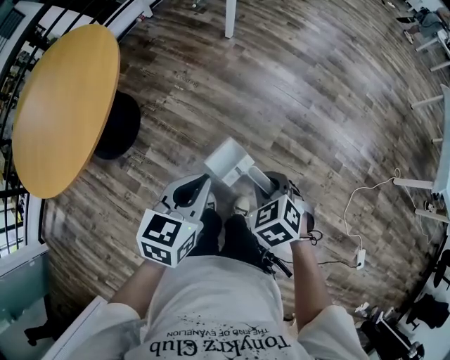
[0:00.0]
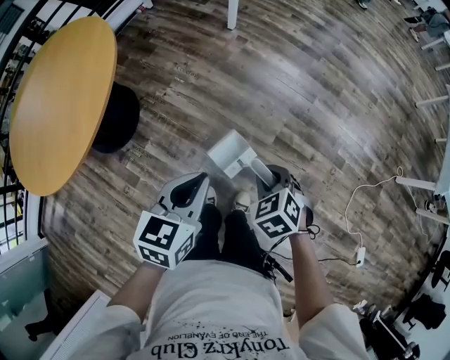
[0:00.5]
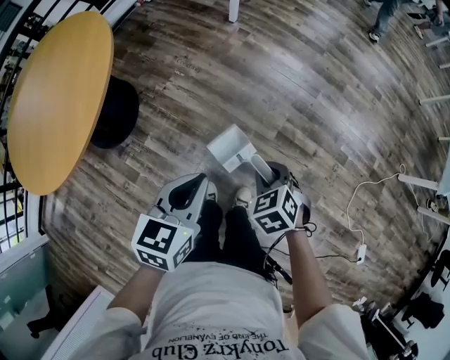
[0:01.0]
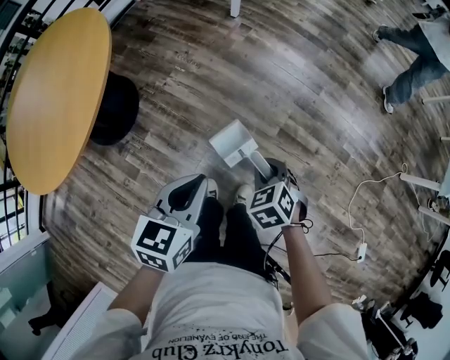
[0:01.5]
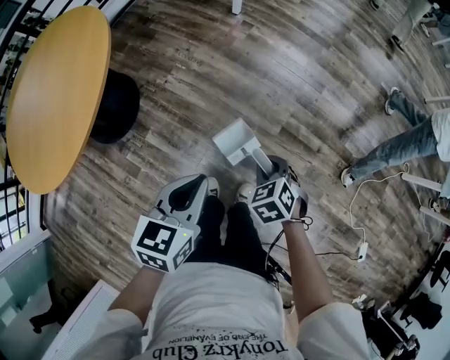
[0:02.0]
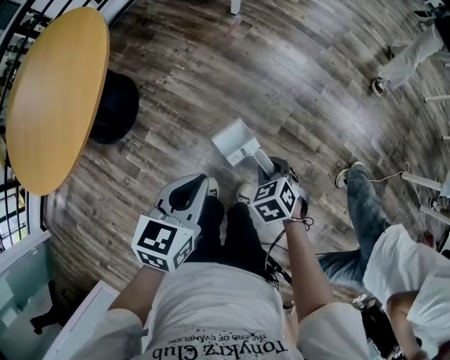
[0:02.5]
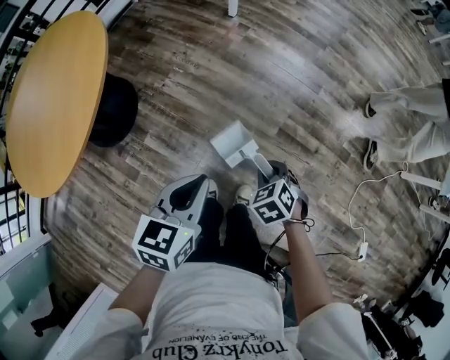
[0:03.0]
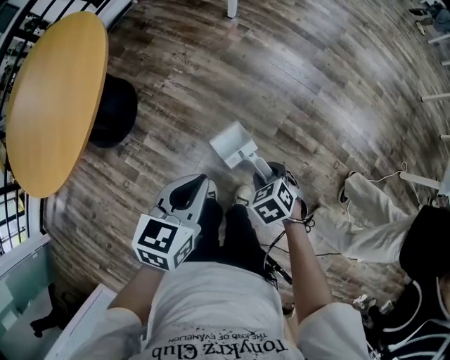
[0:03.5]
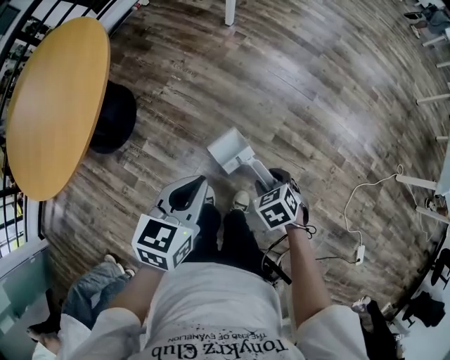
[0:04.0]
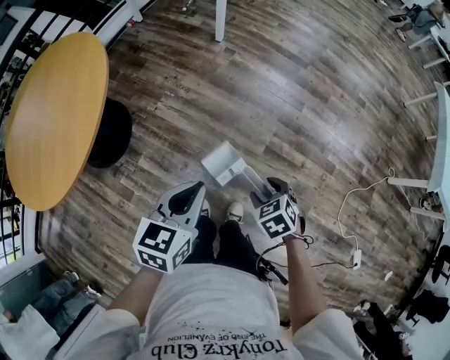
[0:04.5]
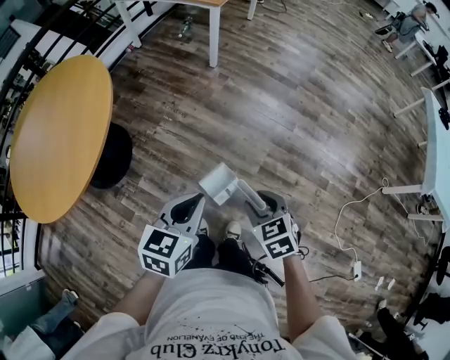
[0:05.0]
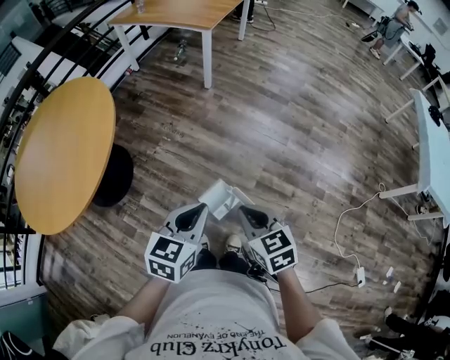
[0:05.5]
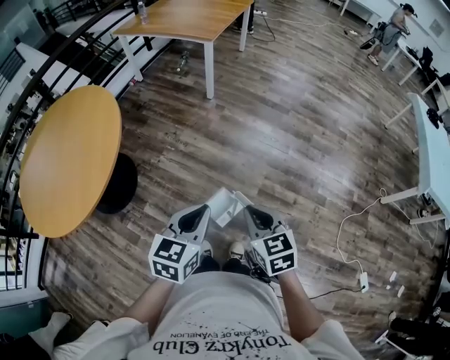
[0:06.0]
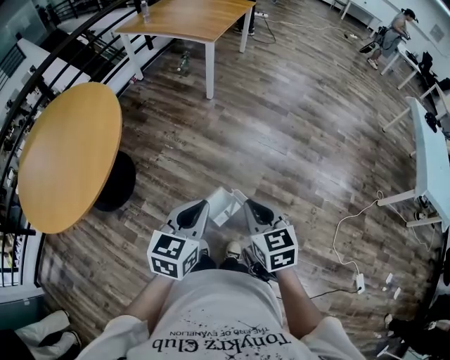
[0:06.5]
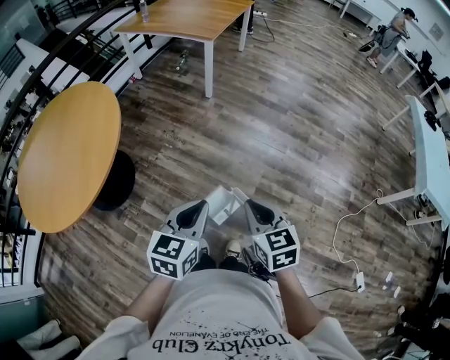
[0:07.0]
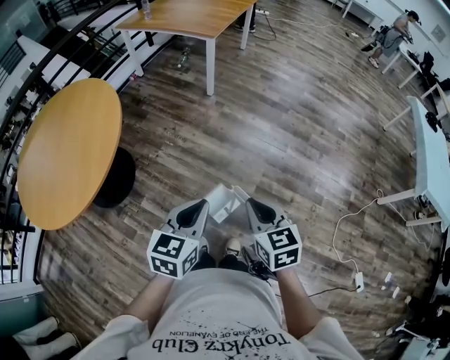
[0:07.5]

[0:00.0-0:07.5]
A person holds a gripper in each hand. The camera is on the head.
0:00.0 to 0:02.0: The left gripper heads downward, covering roughly 5 cm. The right gripper travels downward and forward by some 15 cm.
0:02.0 to 0:04.0: The right gripper shifts by about 5 cm, and opens its fingers.
0:04.0 to 0:05.5: The right gripper travels upward by roughly 20 cm, points its fingers roughly 30 degrees further upward, and closes its fingers. The left gripper is displaced upward by about 10 cm.
0:05.5 to 0:07.5: There are only small adjustments of the grippers.

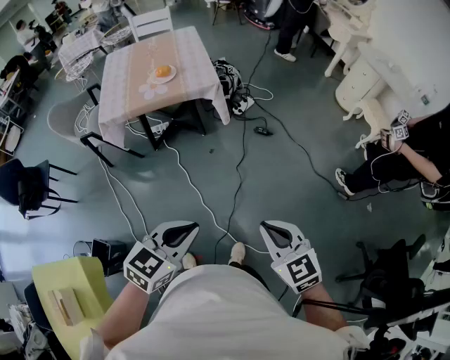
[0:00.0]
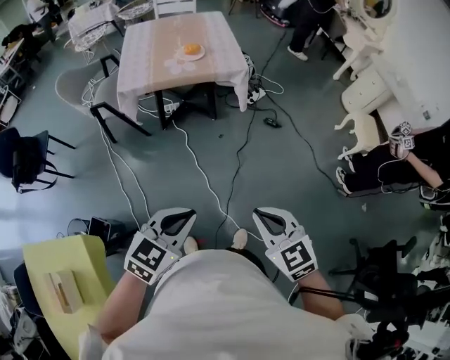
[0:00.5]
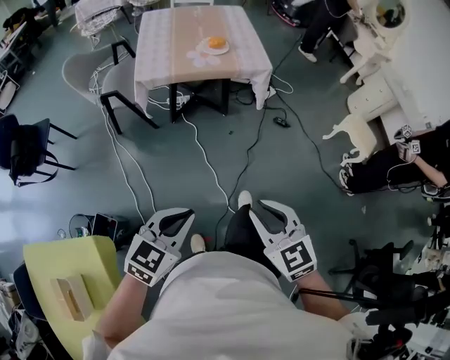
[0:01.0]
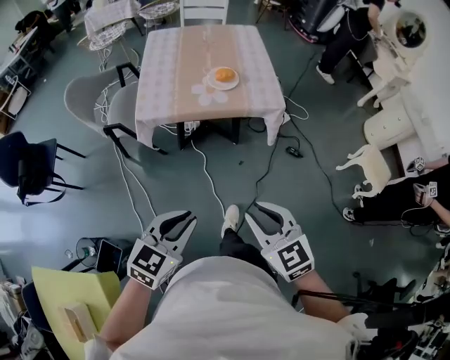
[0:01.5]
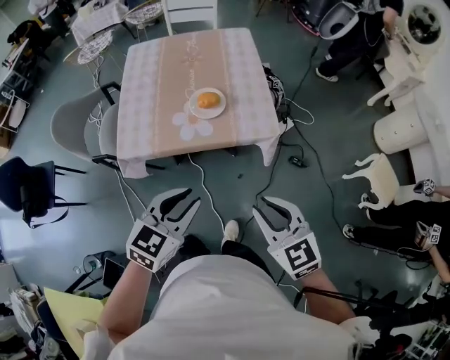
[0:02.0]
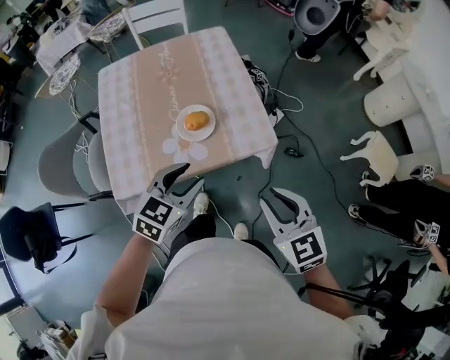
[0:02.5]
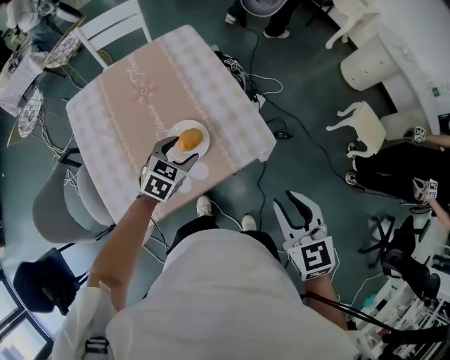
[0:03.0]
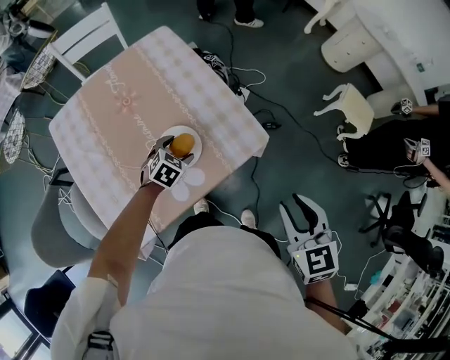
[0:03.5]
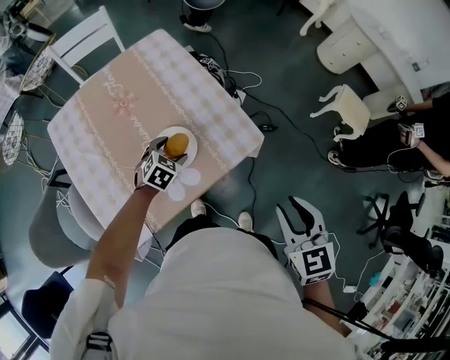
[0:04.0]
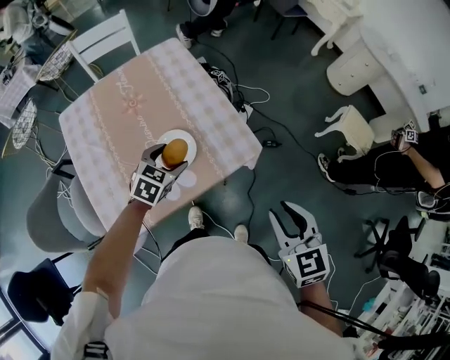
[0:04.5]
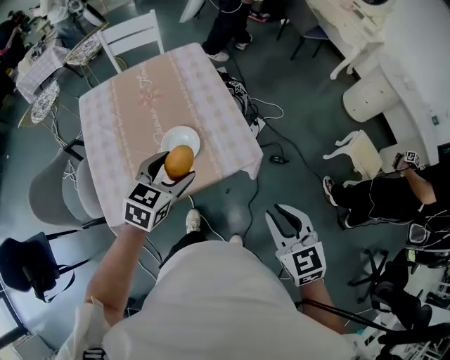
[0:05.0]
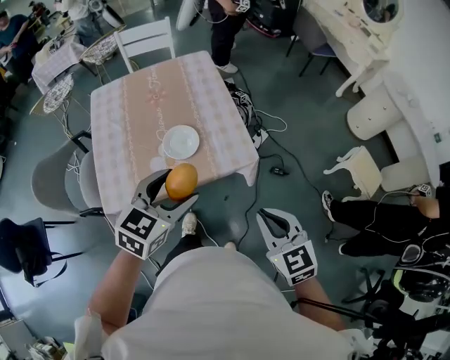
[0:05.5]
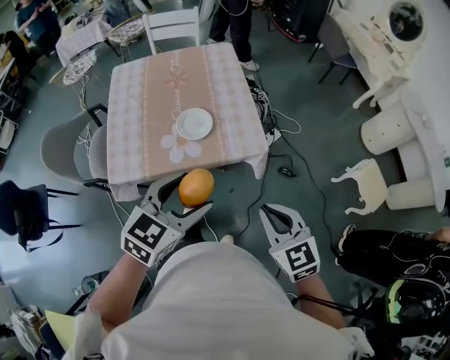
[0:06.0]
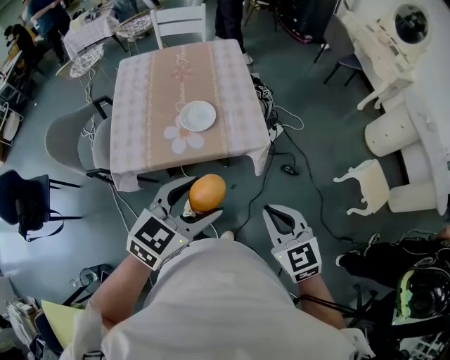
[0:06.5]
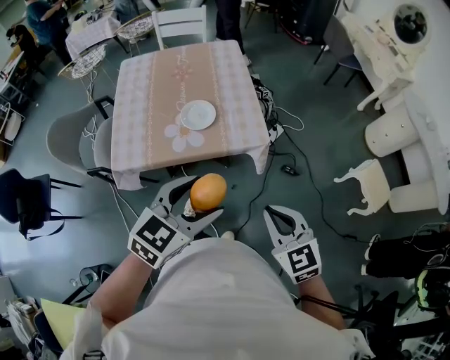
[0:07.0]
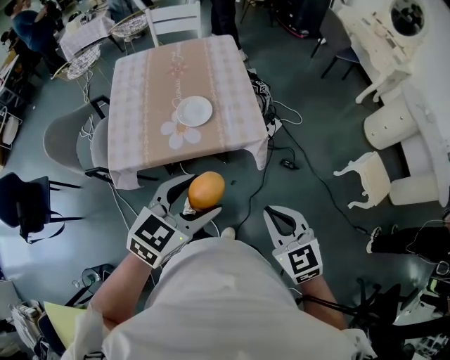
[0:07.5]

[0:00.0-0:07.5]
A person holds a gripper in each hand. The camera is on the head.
0:00.0 to 0:02.0: The pair of grippers is taken forward and to the left, roughly 50 cm.
0:02.0 to 0:04.0: The right gripper shifts by some 15 cm, and changes its angle by some 50 degrees. Meanwhile the left gripper shifts by approximately 40 cm, rotates approximately 40 degrees, and opens its fingers.
0:04.0 to 0:05.5: The right gripper changes place by some 5 cm, rotates roughly 30 degrees, and closes its fingers. Meanwhile the left gripper is displaced upward and backward by some 35 cm, and swivels roughly 30 degrees.
0:05.5 to 0:07.5: The left gripper shifts approximately 15 cm backward and to the right. The right gripper goes approximately 10 cm backward.

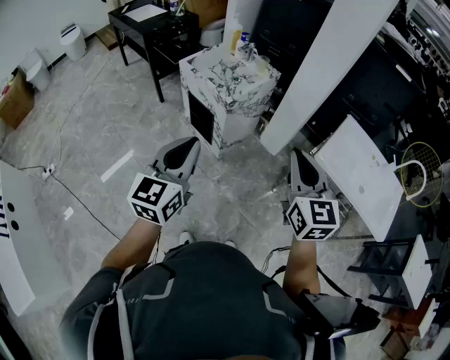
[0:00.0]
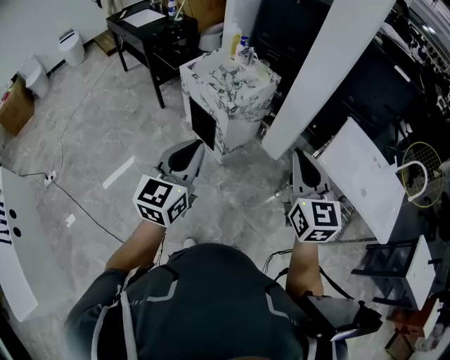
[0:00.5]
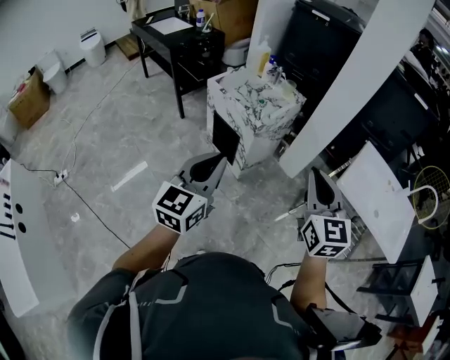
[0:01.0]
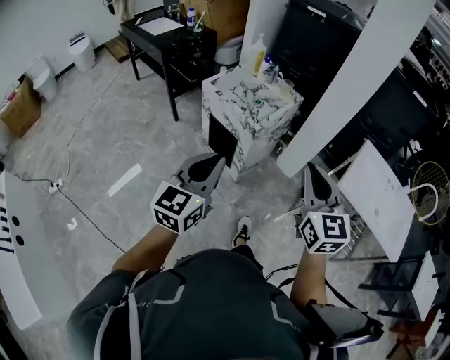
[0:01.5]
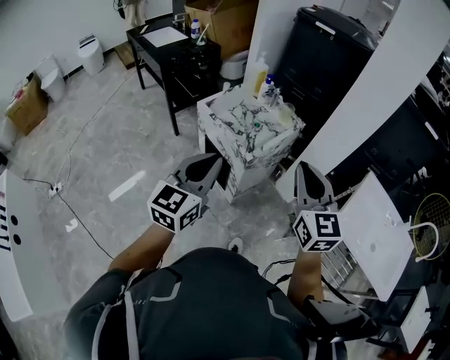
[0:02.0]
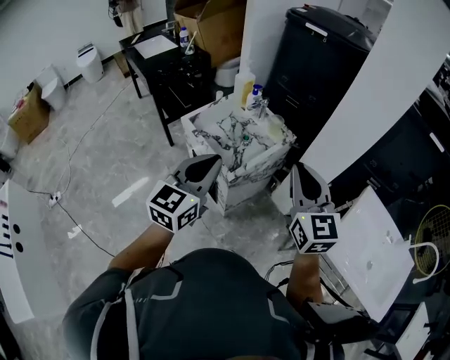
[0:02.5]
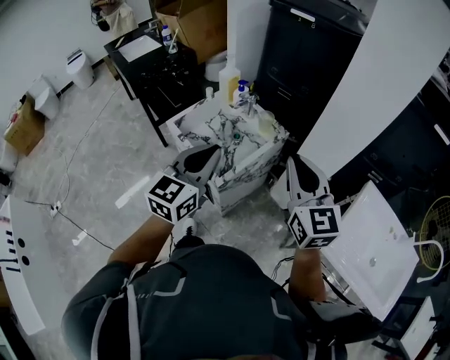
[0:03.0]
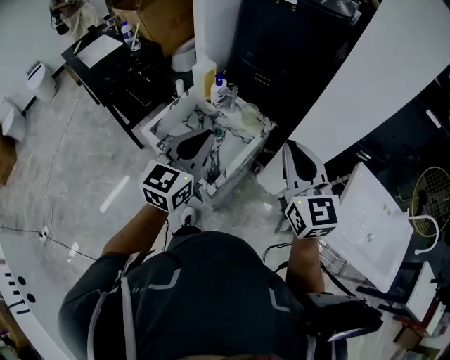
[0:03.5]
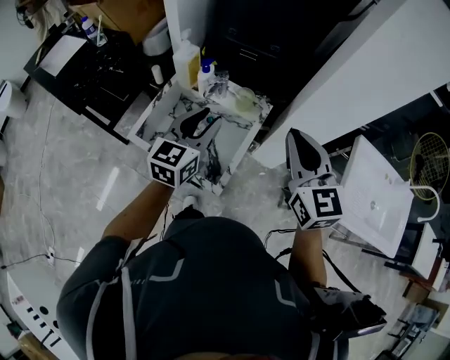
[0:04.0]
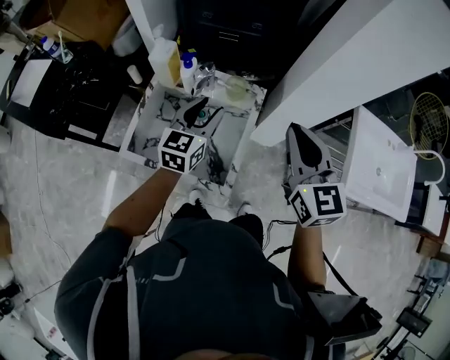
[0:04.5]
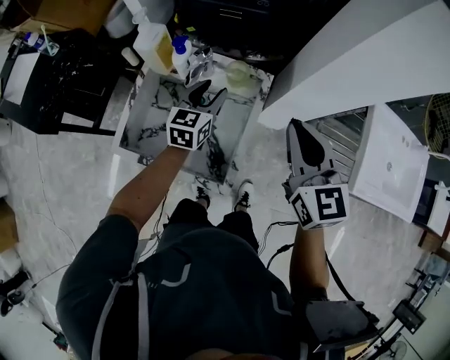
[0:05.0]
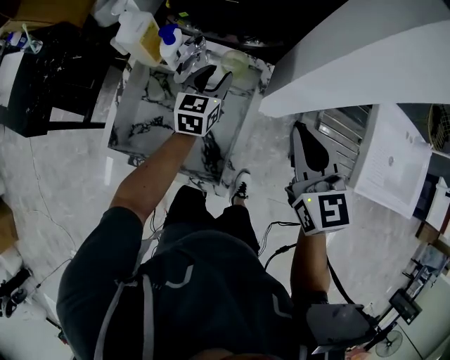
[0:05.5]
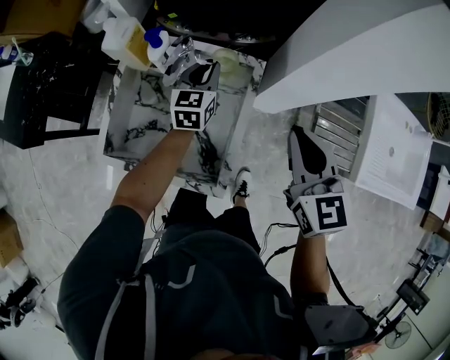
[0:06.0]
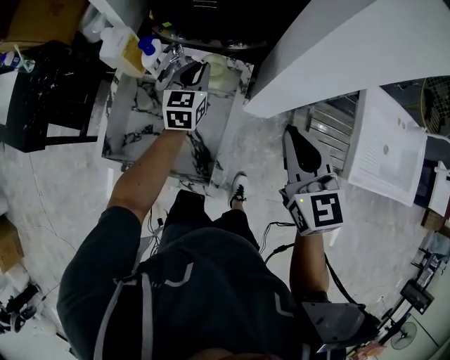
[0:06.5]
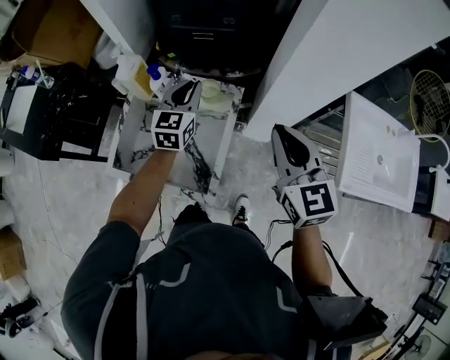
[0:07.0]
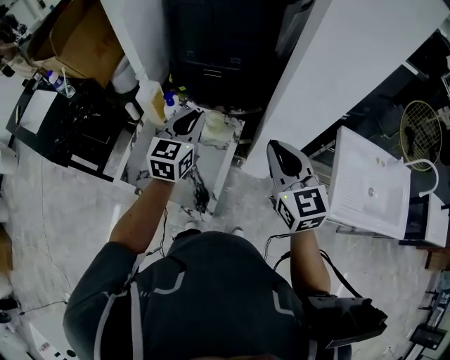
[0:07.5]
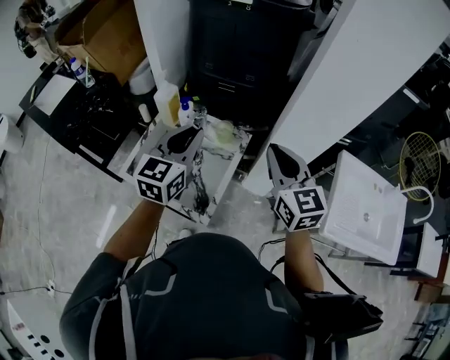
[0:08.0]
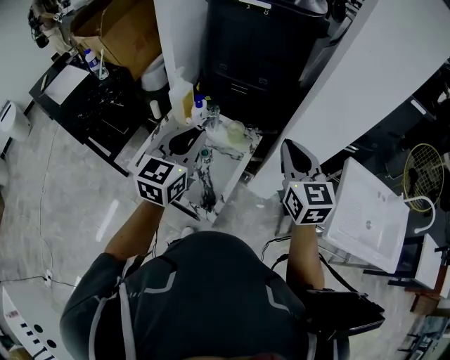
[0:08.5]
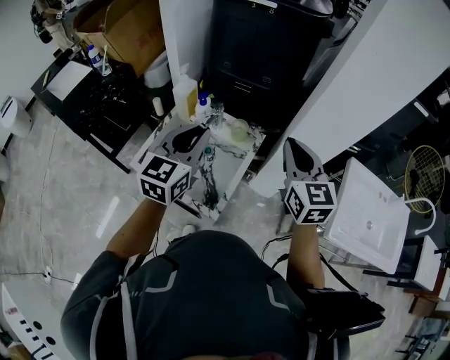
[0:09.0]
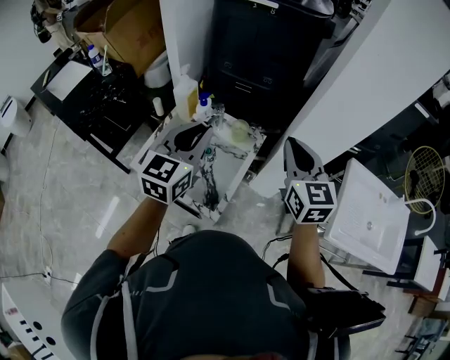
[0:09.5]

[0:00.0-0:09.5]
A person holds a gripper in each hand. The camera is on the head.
0:00.0 to 0:02.0: The left gripper heads forward, covering some 20 cm, while the right gripper shifts some 25 cm forward and to the left.
0:02.0 to 0:04.0: The grippers both shift forward by roughly 40 cm. The left gripper turns by about 20 degrees, and opens its fingers.
0:04.0 to 0:05.5: The left gripper is displaced downward and forward by about 30 cm. Meanwhile the right gripper travels downward and forward by roughly 15 cm.
0:05.5 to 0:07.5: The right gripper goes approximately 10 cm upward. Meanwhile the left gripper is displaced upward by approximately 20 cm, and closes its fingers.
0:07.5 to 0:09.5: The left gripper shifts roughly 15 cm backward, upward and to the left.

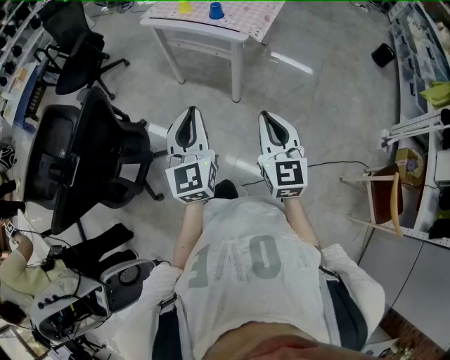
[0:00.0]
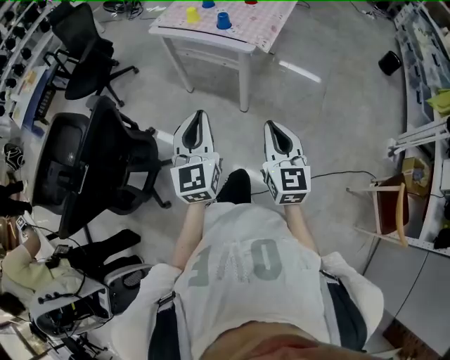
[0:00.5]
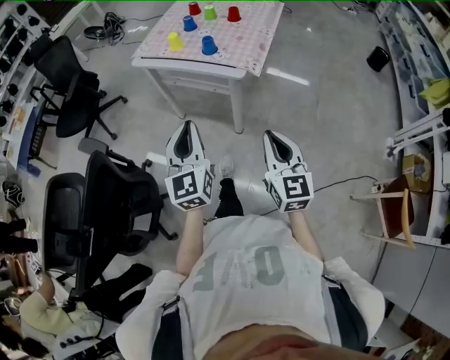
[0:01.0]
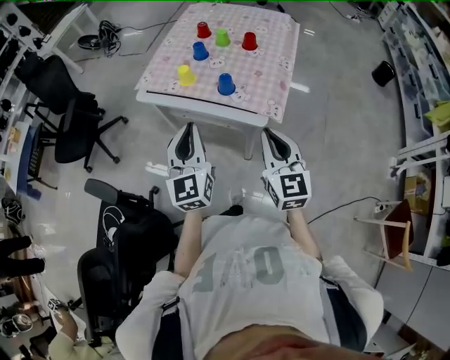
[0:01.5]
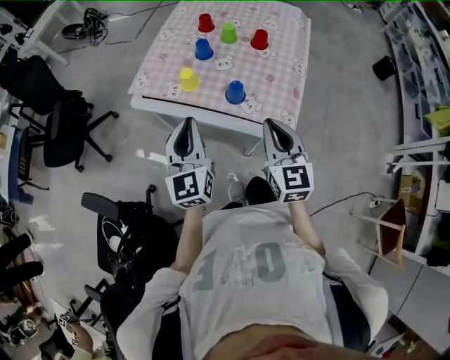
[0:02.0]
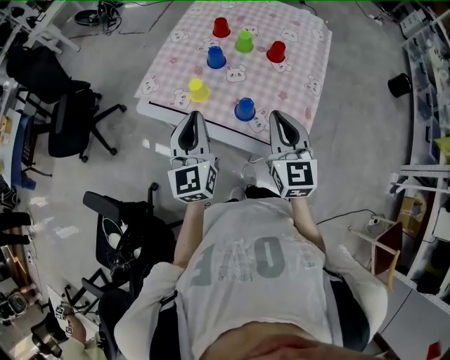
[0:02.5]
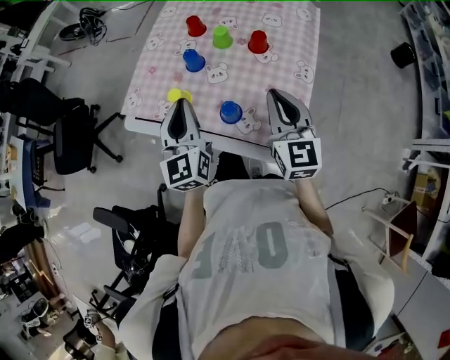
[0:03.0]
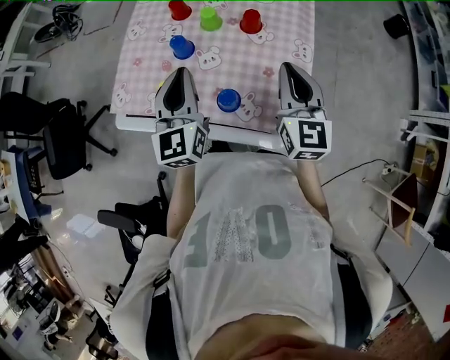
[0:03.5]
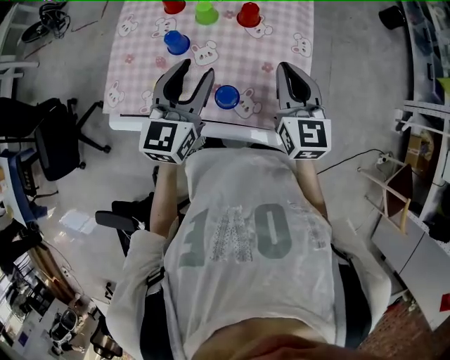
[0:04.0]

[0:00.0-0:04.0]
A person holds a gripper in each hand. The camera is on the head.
0:00.0 to 0:02.0: The two grippers travel together, forward, approximately 50 cm.
0:02.0 to 0:04.0: The left gripper shifts about 25 cm forward and to the right, rotates some 30 degrees, and opens, while the right gripper goes approximately 20 cm forward.
